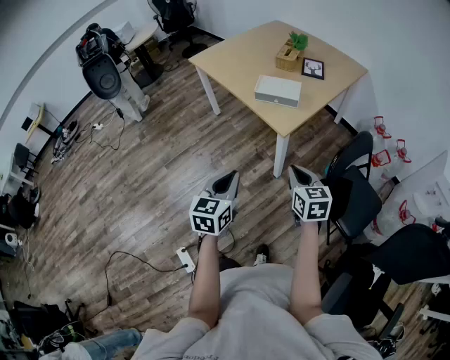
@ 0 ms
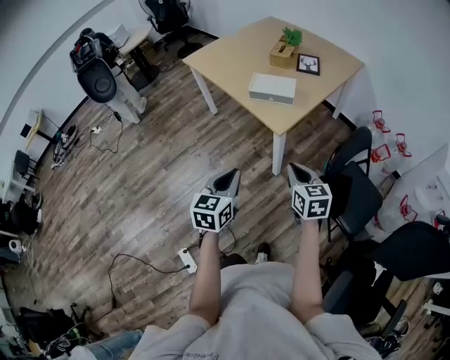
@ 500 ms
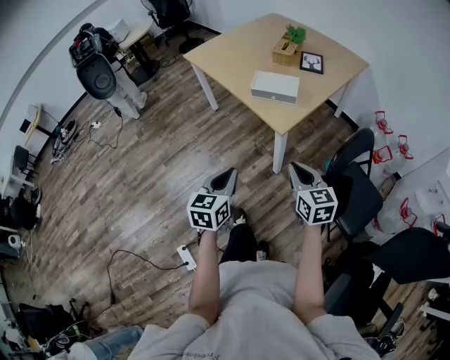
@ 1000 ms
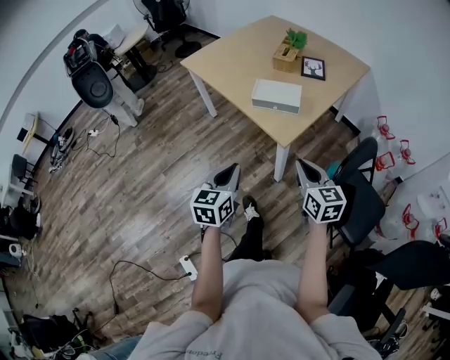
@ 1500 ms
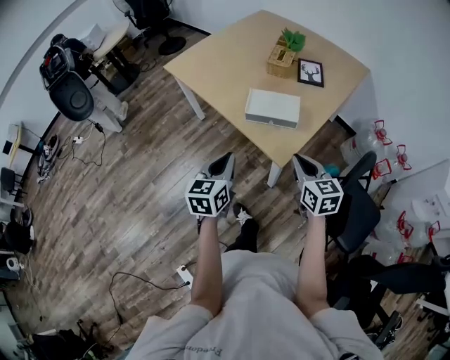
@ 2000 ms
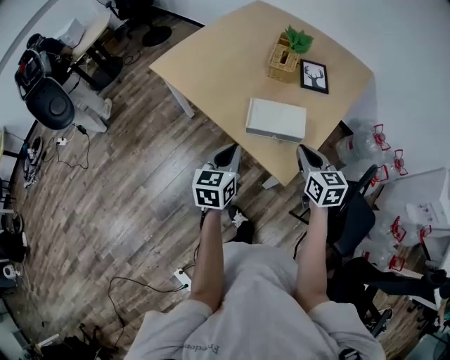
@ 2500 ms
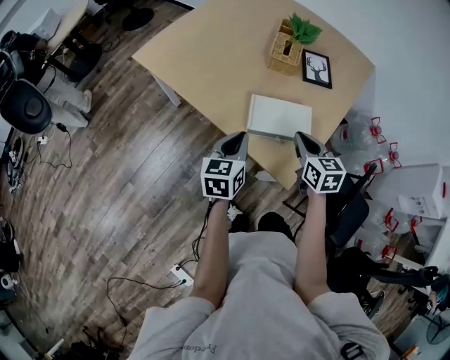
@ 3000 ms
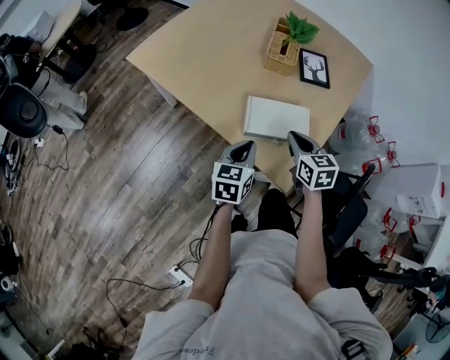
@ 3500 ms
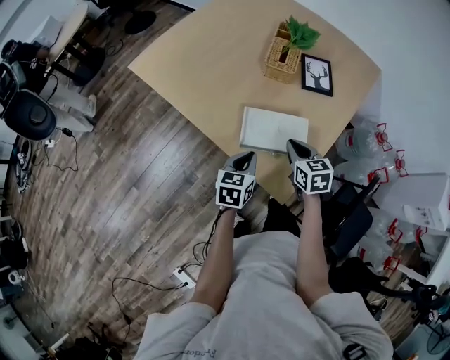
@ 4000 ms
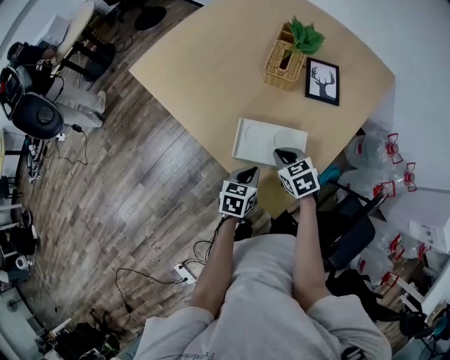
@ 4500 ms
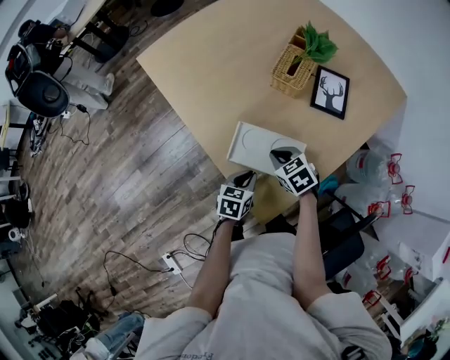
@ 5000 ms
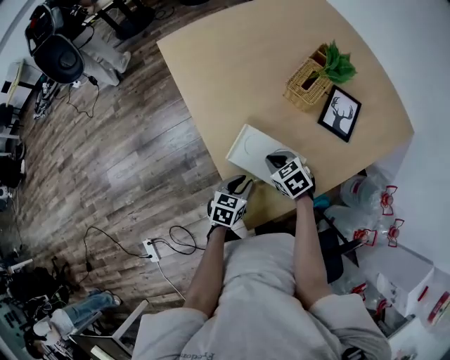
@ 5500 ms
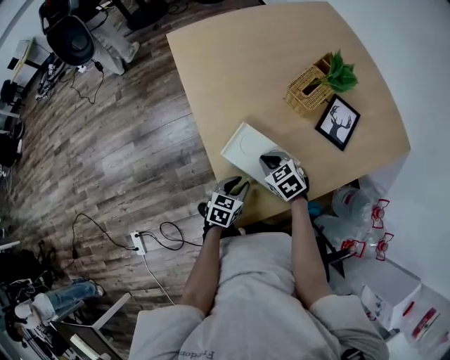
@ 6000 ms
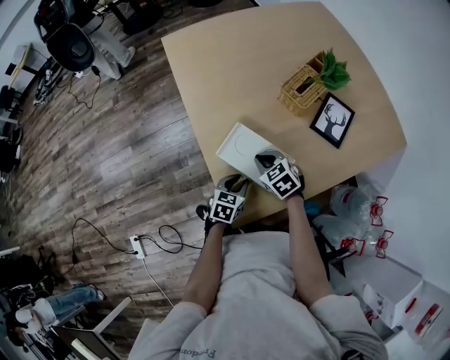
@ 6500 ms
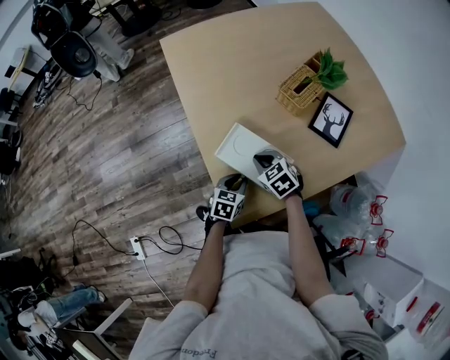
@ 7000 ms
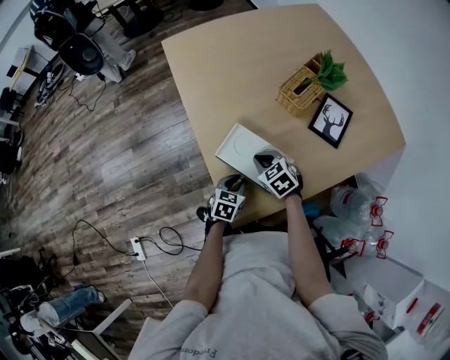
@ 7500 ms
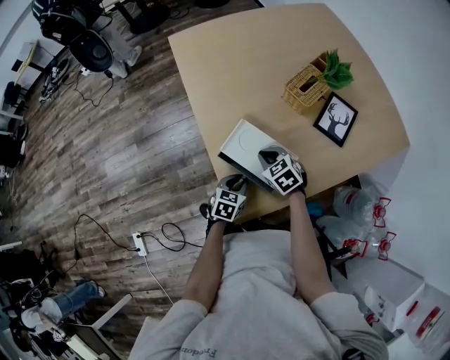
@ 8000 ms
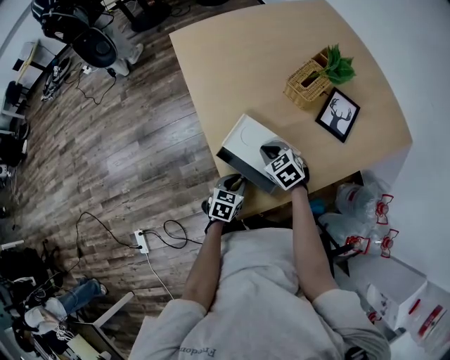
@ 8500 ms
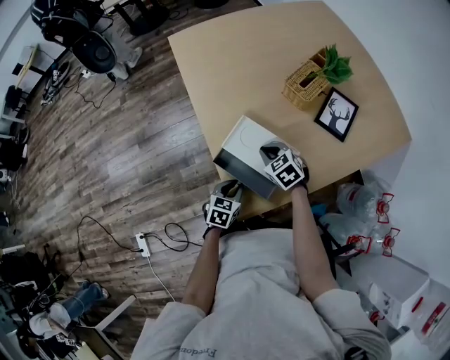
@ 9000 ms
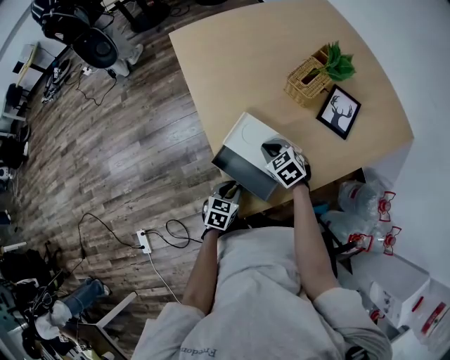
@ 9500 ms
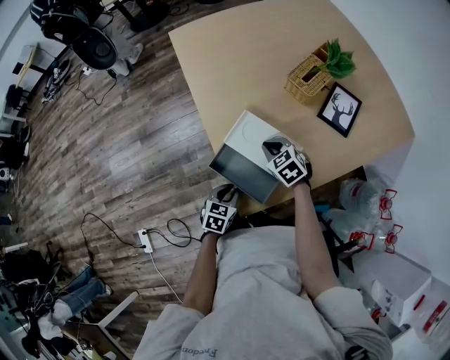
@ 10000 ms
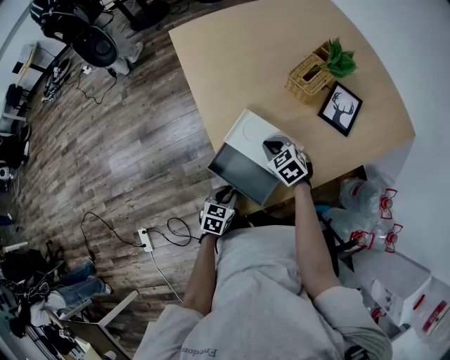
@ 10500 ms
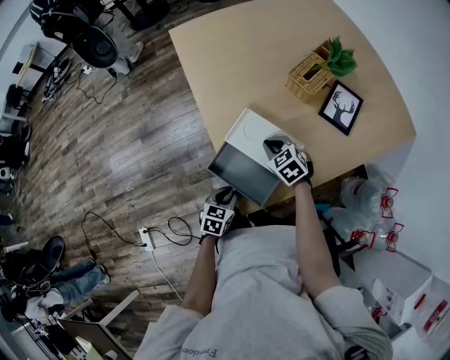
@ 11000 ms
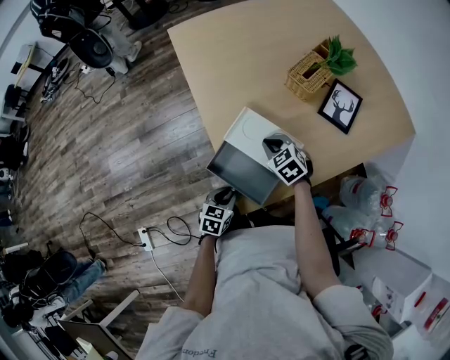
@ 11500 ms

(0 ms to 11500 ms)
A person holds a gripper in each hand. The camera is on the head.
0 ms - 2000 ms: The grippers both shift forward by about 25 cm.
2000 ms - 4000 ms: The two grippers go about 30 cm forward and downward.
4000 ms - 6000 ms: The two grippers go roughly 10 cm downward. The left gripper opens its fingers. The right gripper changes its angle by roughly 60 degrees.
6000 ms - 7500 ms: The grippers stay close to where they were, moving slightly.
7500 ms - 9500 ms: The left gripper travels backward and to the left by approximately 10 cm.
9500 ms - 11500 ms: The grippers make only small movements.

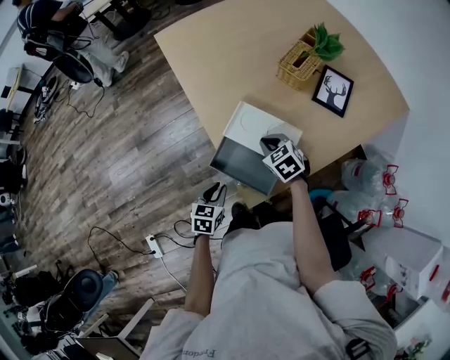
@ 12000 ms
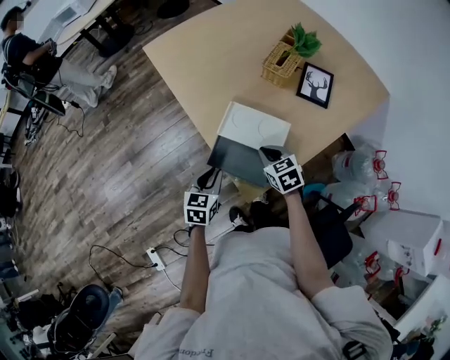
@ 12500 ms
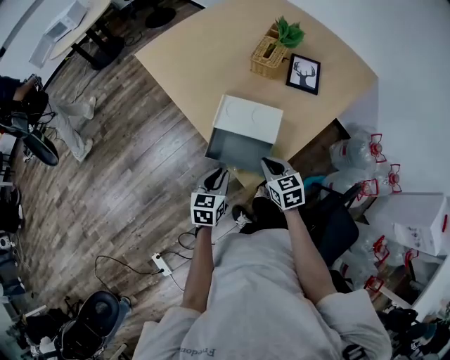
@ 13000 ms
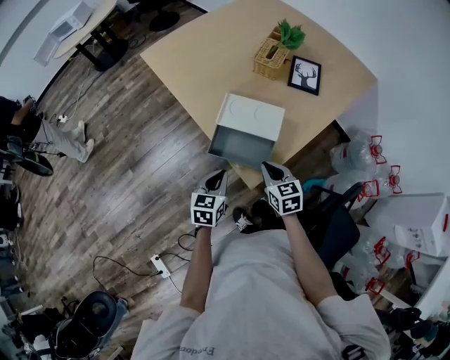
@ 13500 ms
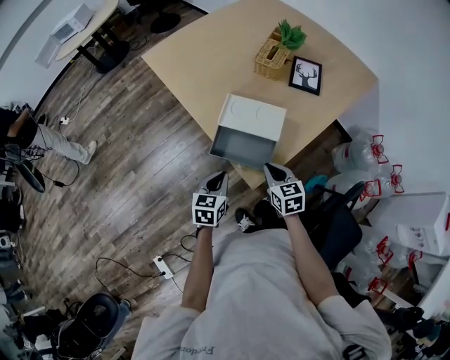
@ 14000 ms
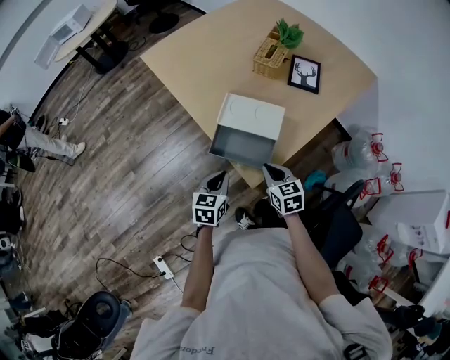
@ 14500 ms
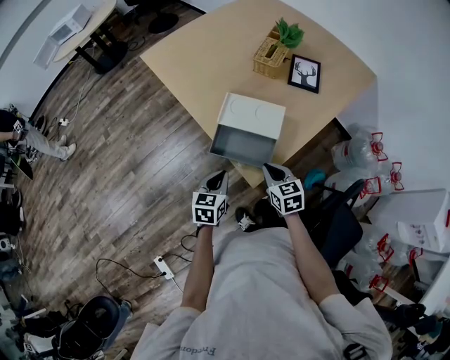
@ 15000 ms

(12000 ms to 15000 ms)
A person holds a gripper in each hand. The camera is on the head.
12000 ms - 13500 ms: The left gripper moves upward, roughly 10 cm. The right gripper shifts approximately 15 cm backward, and rotates roughly 40 degrees.
13500 ms - 15000 ms: The grippers make only small movements.

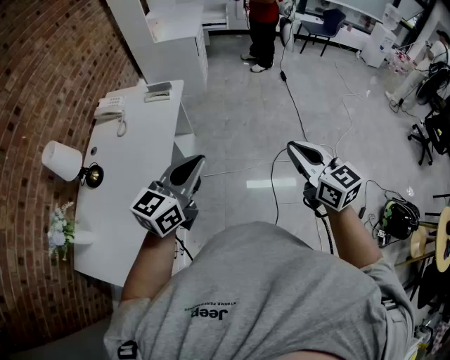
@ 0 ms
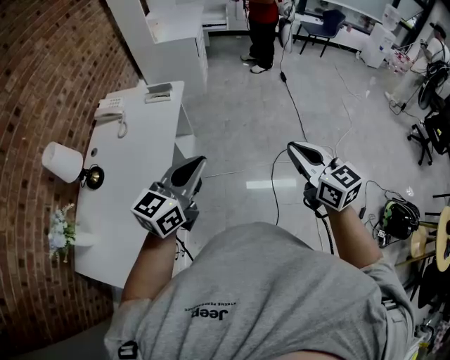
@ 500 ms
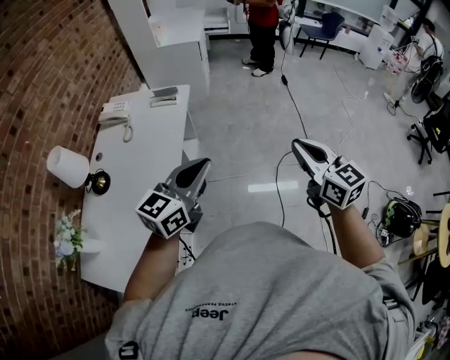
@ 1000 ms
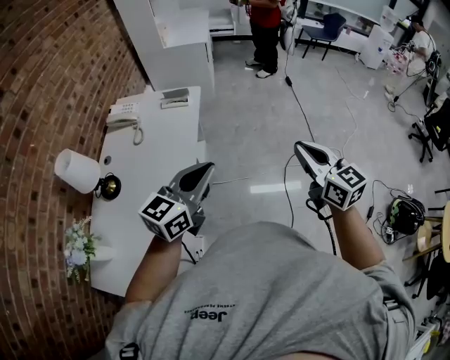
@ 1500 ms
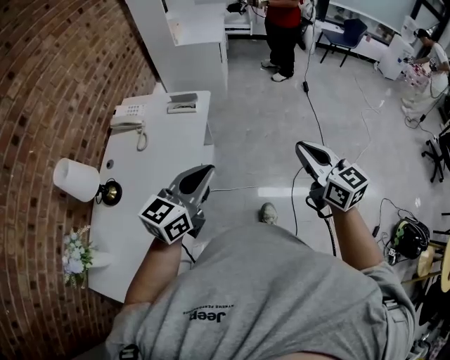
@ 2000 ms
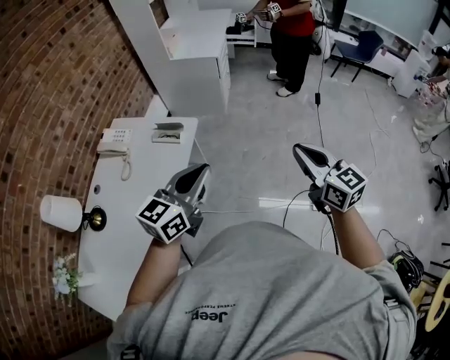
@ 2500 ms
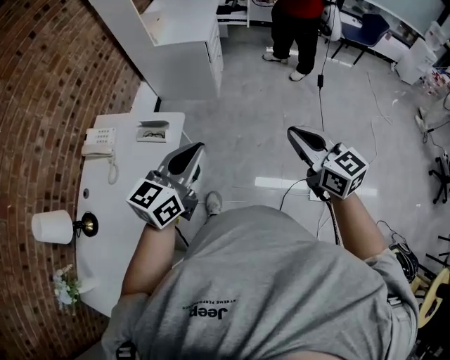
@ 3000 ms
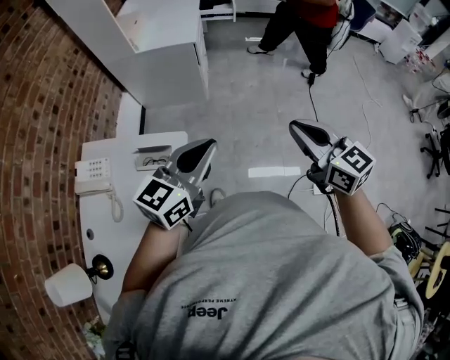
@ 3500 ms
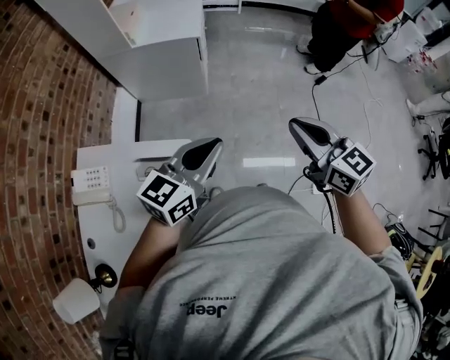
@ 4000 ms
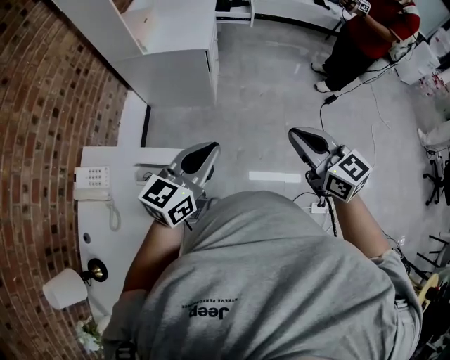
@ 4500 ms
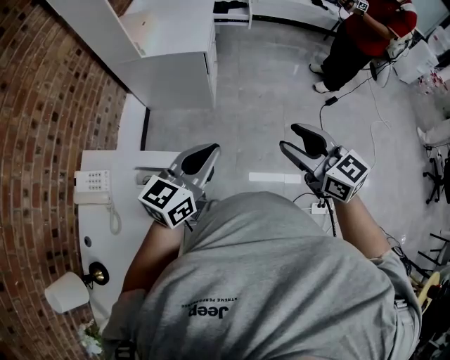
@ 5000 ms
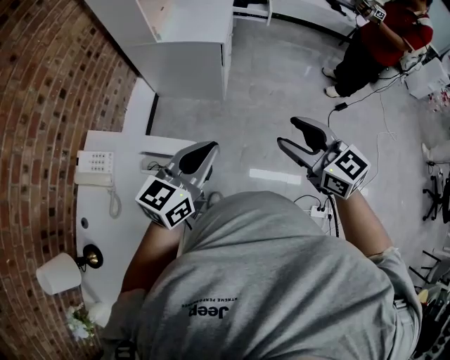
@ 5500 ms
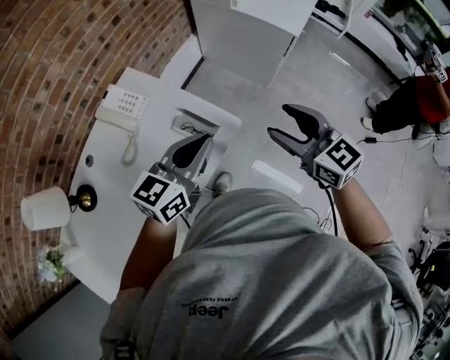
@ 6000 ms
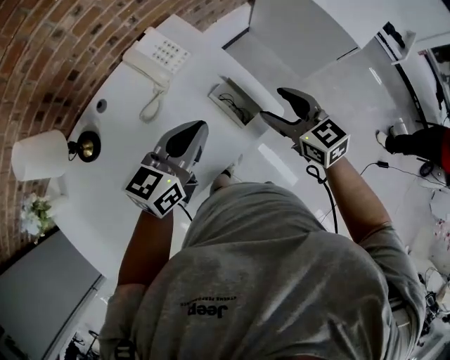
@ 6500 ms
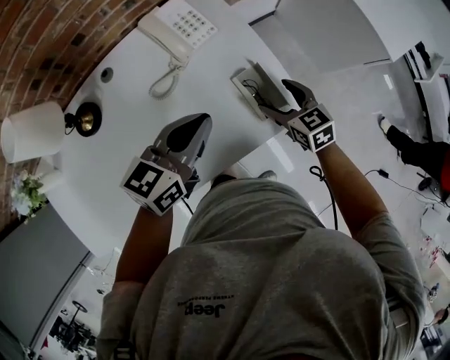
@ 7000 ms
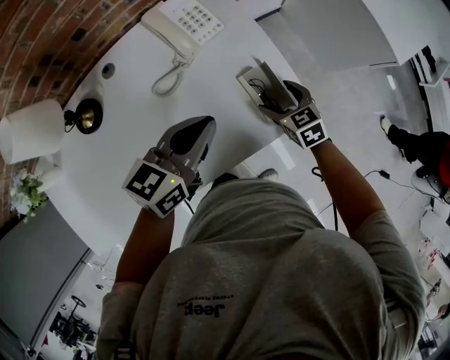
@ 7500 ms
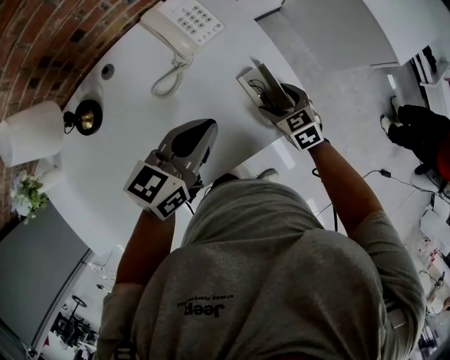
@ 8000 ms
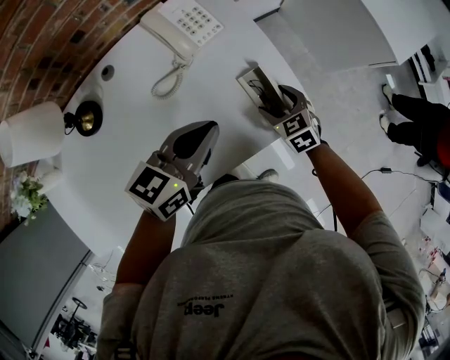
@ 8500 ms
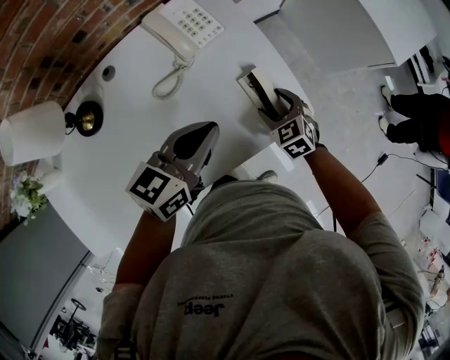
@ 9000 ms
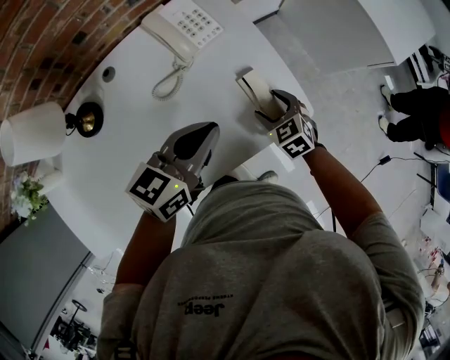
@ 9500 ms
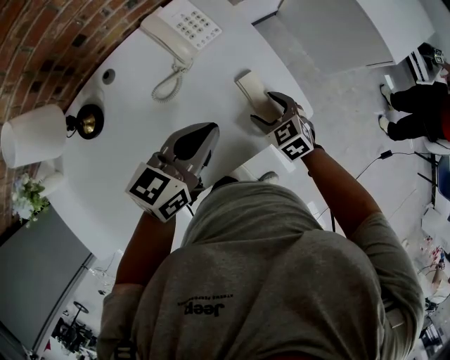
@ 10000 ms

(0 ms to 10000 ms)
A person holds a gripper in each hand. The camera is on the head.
0 ms - 2000 ms: The right gripper travels forward and to the left by approximately 15 cm. Meanwhile the left gripper moves to the left and forward, roughly 15 cm.
2000 ms - 4000 ms: The pair of grippers is taken forward, roughly 50 cm.
4000 ms - 6000 ms: The right gripper ends up about 20 cm from where it was, rotates approximately 40 degrees, and opens. The left gripper ends up approximately 15 cm from where it was, and swivels about 40 degrees.
6000 ms - 8000 ms: The right gripper is displaced downward and to the left by some 35 cm, and points its fingers approximately 30 degrees further downward. Meanwhile the left gripper shifts some 20 cm to the left and downward, and rotates roughly 30 degrees.
8000 ms - 10000 ms: The grippers move only a little.

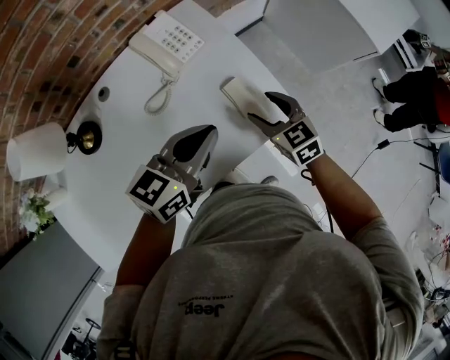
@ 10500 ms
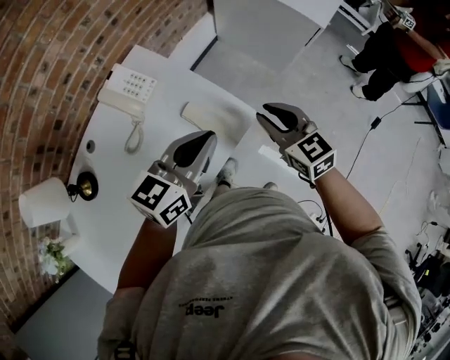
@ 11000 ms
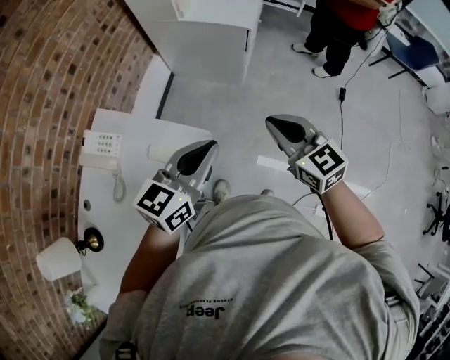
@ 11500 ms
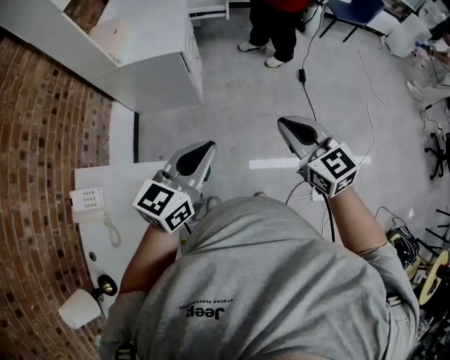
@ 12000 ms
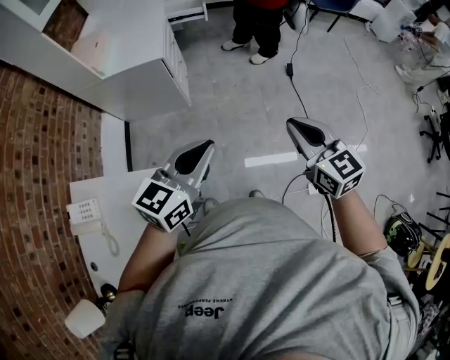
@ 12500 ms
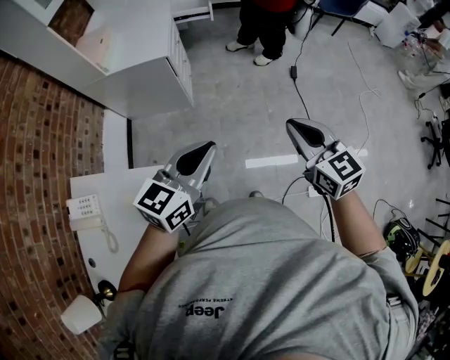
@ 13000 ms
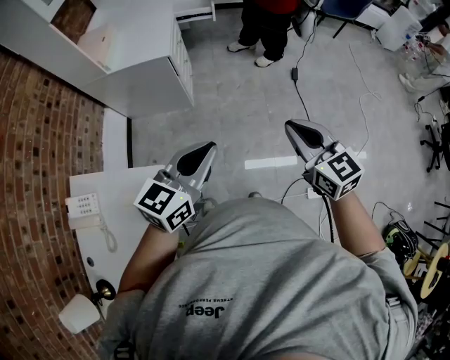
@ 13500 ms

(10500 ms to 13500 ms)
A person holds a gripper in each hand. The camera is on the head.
10500 ms - 12000 ms: Both grippers are carried approximately 50 cm. The left gripper rotates roughly 50 degrees, while the right gripper rotates roughly 60 degrees, and closes its fingers.
12000 ms - 13500 ms: The right gripper goes roughly 5 cm to the right.
